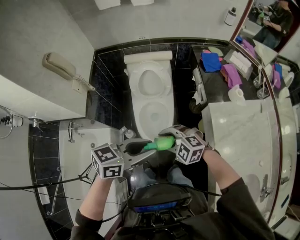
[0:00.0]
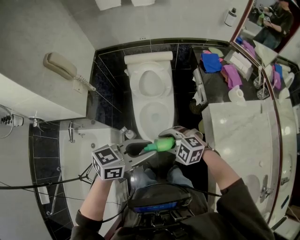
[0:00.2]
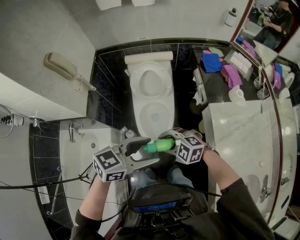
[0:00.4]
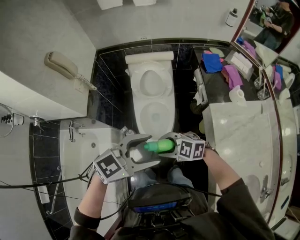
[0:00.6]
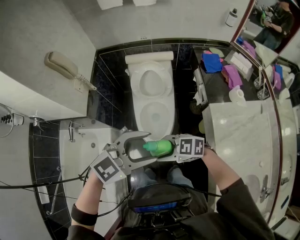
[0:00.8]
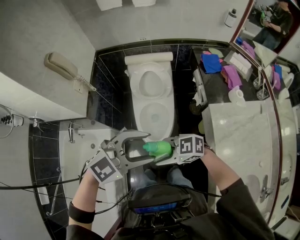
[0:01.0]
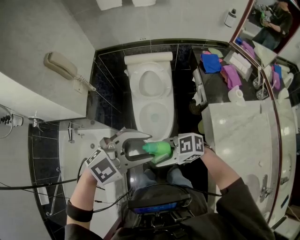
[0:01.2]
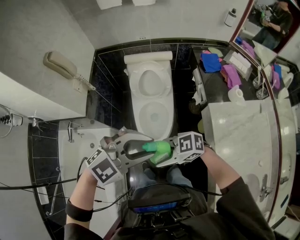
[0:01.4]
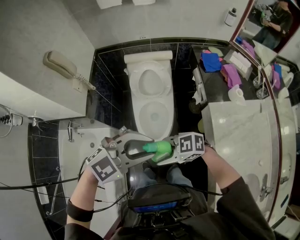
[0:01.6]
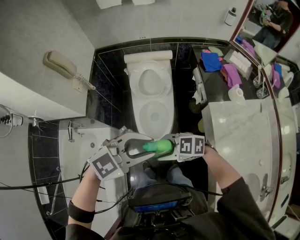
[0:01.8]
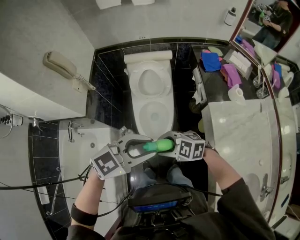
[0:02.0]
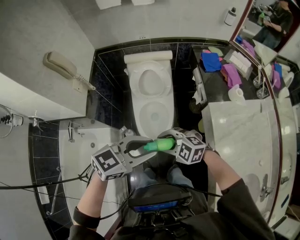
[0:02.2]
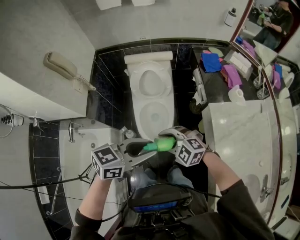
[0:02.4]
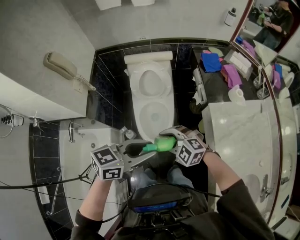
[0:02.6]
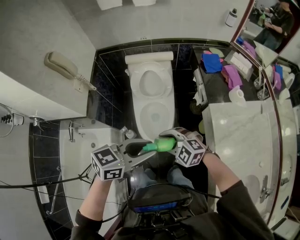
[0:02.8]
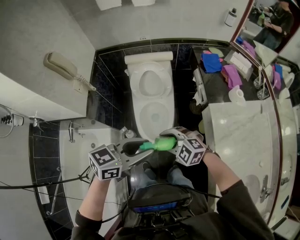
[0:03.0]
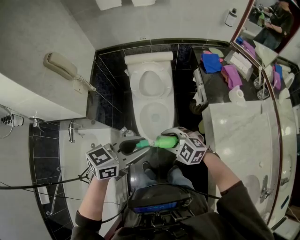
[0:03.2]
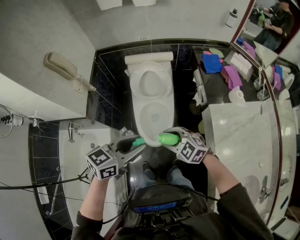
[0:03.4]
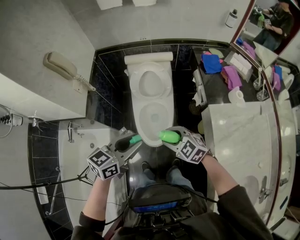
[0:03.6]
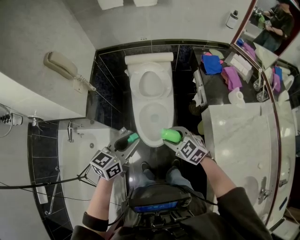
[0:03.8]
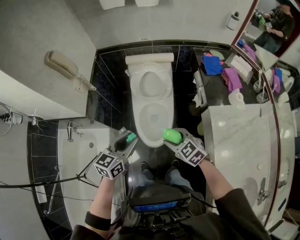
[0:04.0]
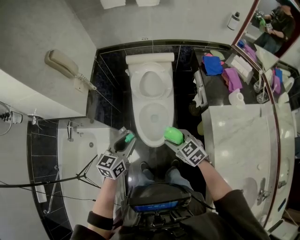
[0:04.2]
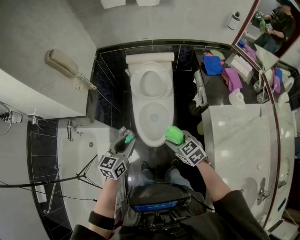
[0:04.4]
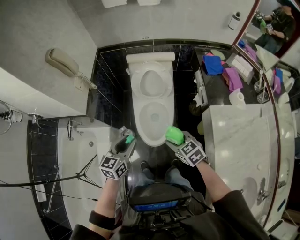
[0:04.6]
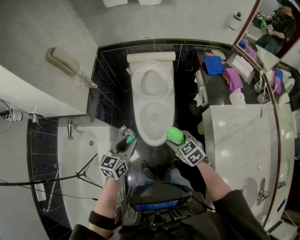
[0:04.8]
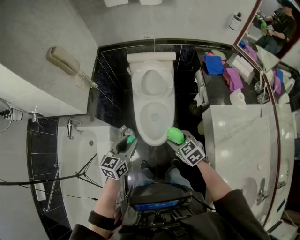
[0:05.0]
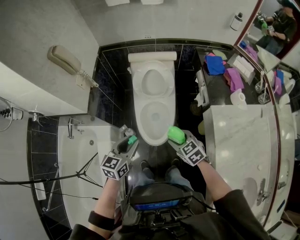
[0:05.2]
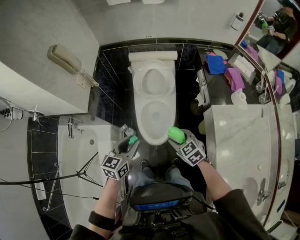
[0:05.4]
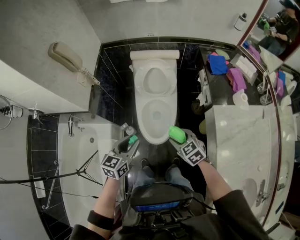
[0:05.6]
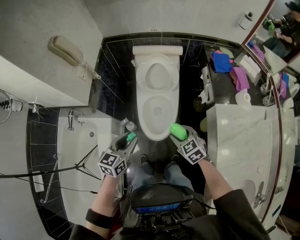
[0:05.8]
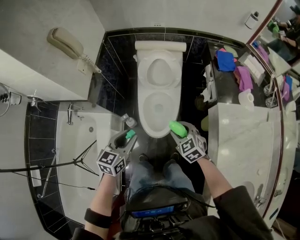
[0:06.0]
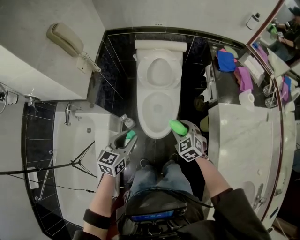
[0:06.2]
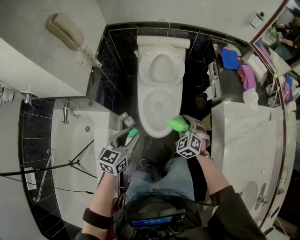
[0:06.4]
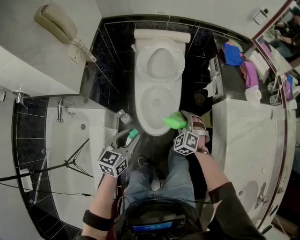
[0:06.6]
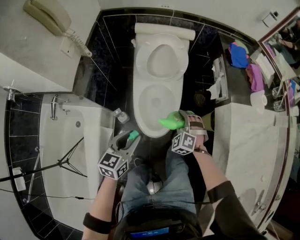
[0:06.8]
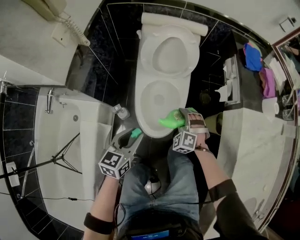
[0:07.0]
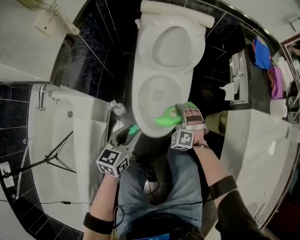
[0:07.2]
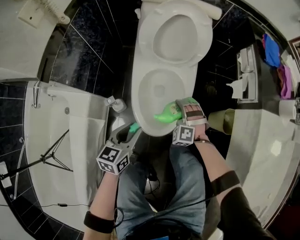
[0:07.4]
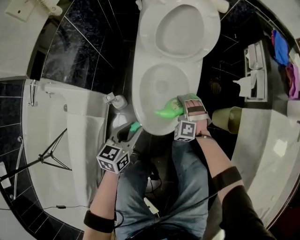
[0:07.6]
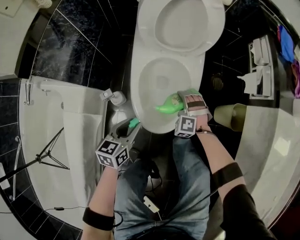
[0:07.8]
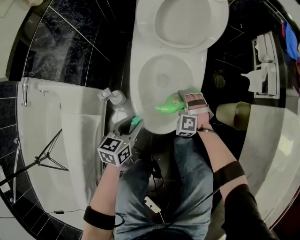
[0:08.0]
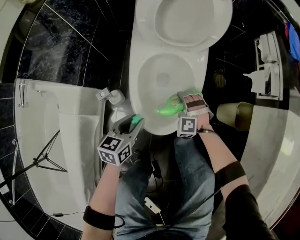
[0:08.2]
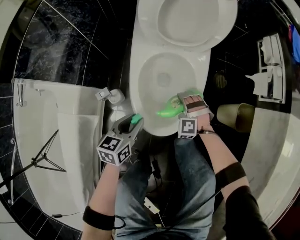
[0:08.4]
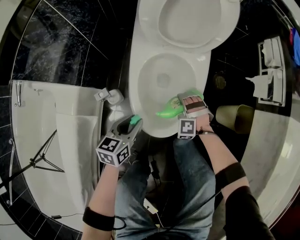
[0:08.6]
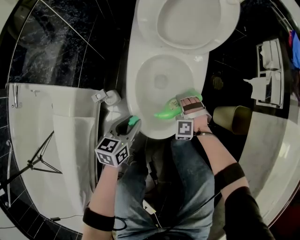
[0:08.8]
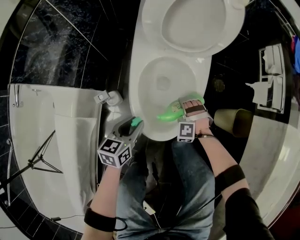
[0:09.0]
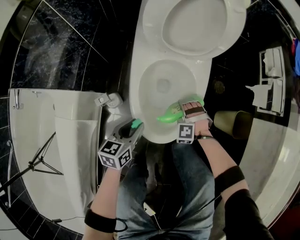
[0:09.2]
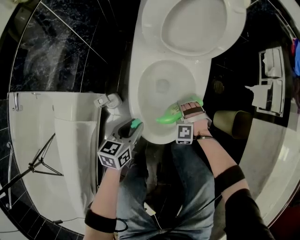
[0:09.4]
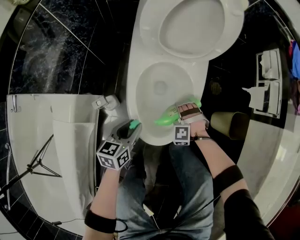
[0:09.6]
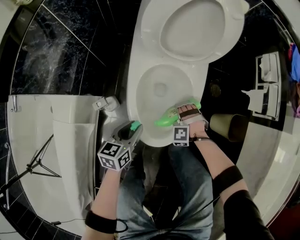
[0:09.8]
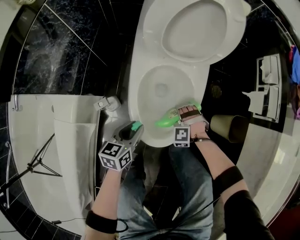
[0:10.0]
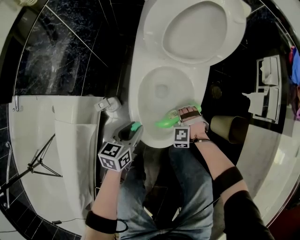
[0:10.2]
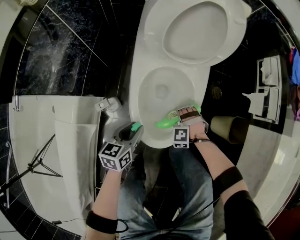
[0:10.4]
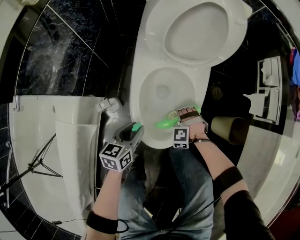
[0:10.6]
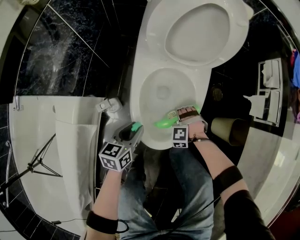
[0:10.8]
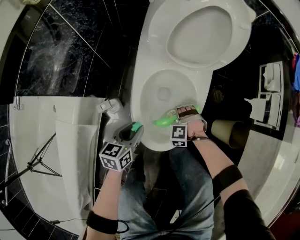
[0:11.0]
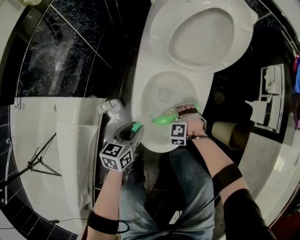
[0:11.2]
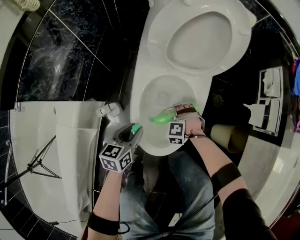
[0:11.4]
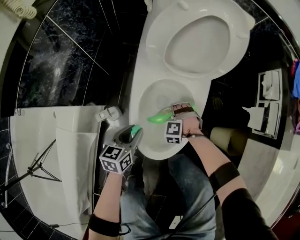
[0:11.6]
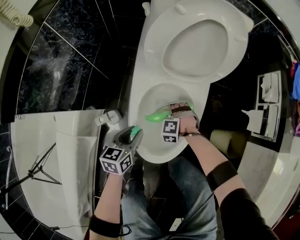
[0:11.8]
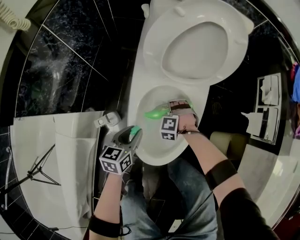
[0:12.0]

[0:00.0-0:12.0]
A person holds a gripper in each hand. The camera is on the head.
0:00.0 to 0:01.6: The right gripper shifts by some 10 cm, and swivels some 40 degrees. Meanwhile the left gripper travels upward by approximately 5 cm, rolls clockwise, seen from behind, by some 50 degrees, and opens, then closes again.
0:01.6 to 0:03.0: The right gripper shifts by approximately 10 cm, and swivels approximately 40 degrees; the left gripper moves roughly 5 cm, and twists about 50 degrees counterclockwise, seen from behind.
0:03.0 to 0:04.4: The right gripper changes place by about 5 cm, and swivels some 40 degrees. The left gripper is displaced downward by some 10 cm, and changes its angle by roughly 40 degrees.
0:04.4 to 0:06.0: There are only small adjustments of the grippers.
0:06.0 to 0:07.6: Both grippers move downward, approximately 40 cm. The right gripper rotates around the line of its fingers by approximately 50 degrees, counterclockwise from behind.
0:07.6 to 0:09.0: The grippers both shift downward by about 10 cm.
0:09.0 to 0:10.4: There are only small adjustments of the grippers.
0:10.4 to 0:12.0: The left gripper is displaced forward by approximately 5 cm. The right gripper shifts about 15 cm to the left and forward.

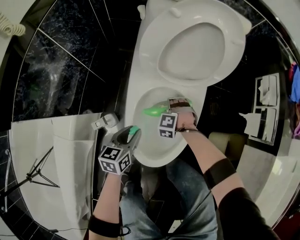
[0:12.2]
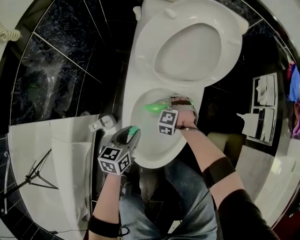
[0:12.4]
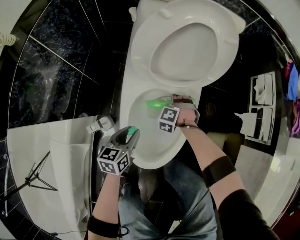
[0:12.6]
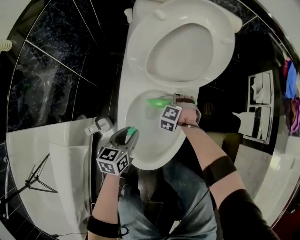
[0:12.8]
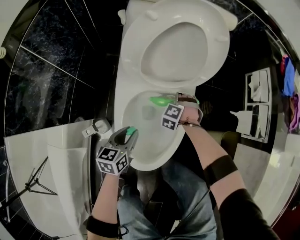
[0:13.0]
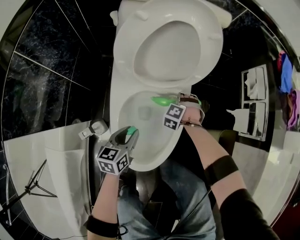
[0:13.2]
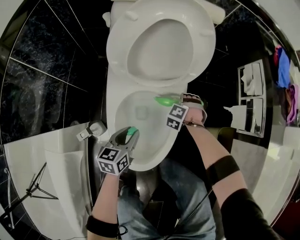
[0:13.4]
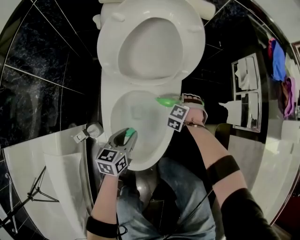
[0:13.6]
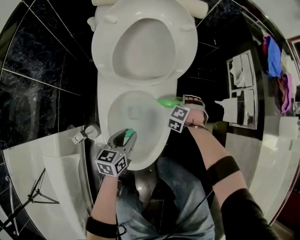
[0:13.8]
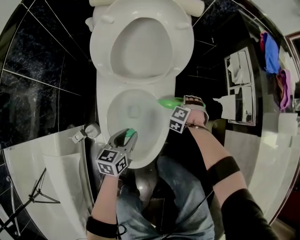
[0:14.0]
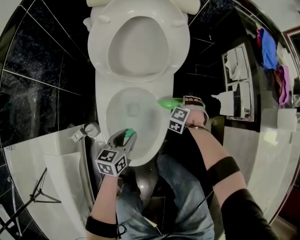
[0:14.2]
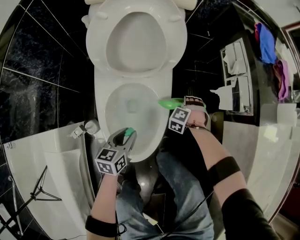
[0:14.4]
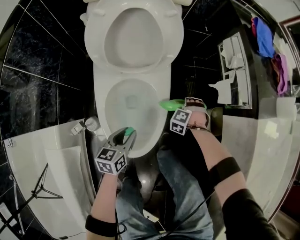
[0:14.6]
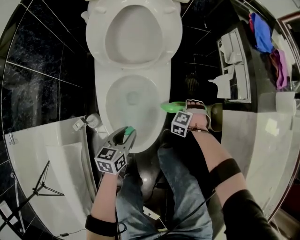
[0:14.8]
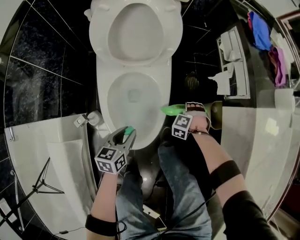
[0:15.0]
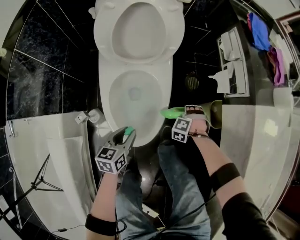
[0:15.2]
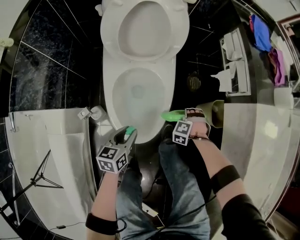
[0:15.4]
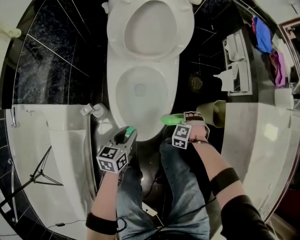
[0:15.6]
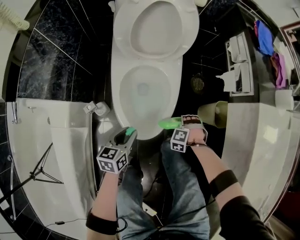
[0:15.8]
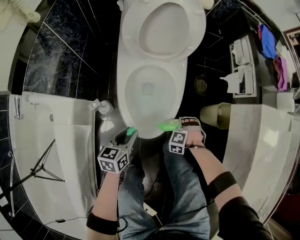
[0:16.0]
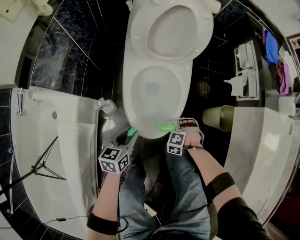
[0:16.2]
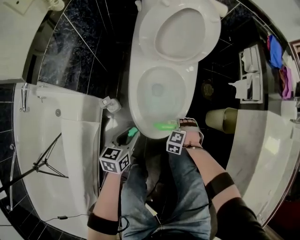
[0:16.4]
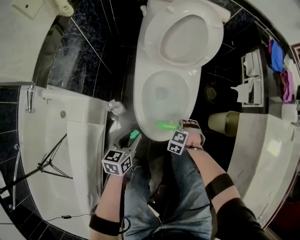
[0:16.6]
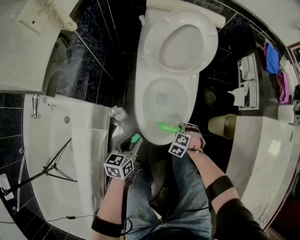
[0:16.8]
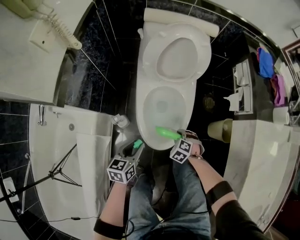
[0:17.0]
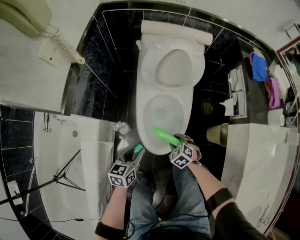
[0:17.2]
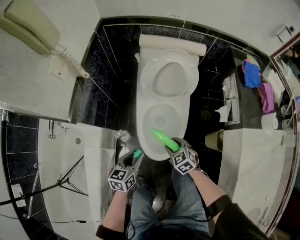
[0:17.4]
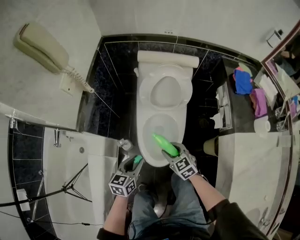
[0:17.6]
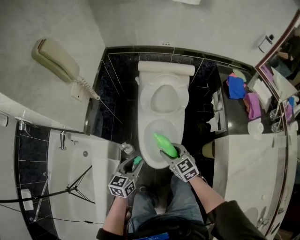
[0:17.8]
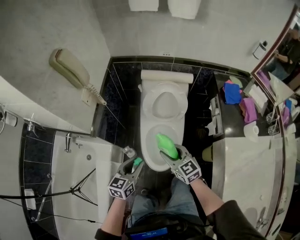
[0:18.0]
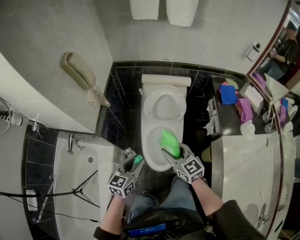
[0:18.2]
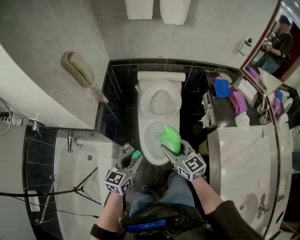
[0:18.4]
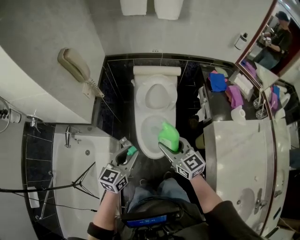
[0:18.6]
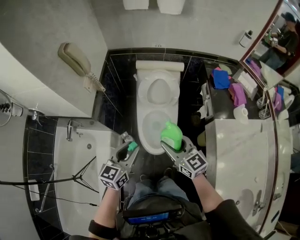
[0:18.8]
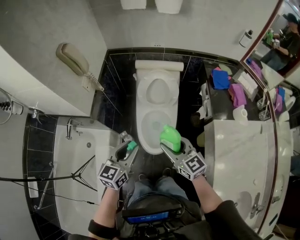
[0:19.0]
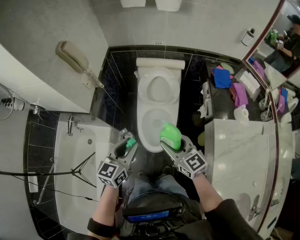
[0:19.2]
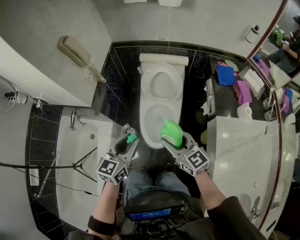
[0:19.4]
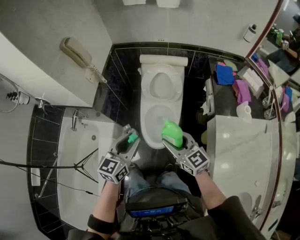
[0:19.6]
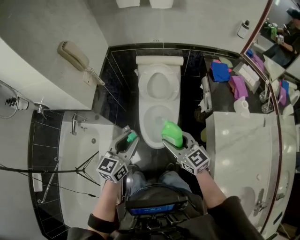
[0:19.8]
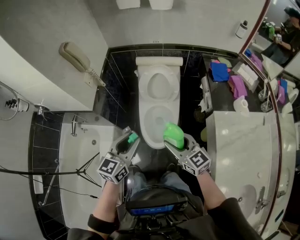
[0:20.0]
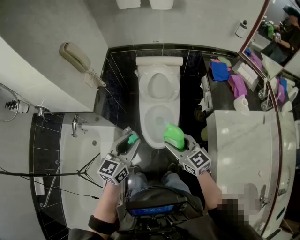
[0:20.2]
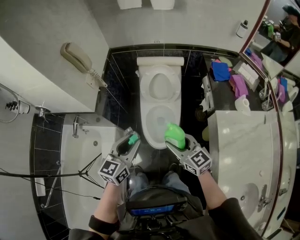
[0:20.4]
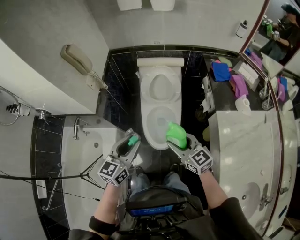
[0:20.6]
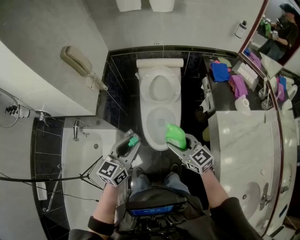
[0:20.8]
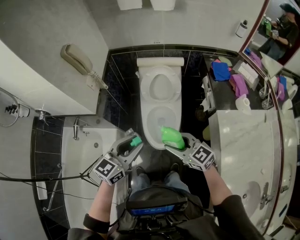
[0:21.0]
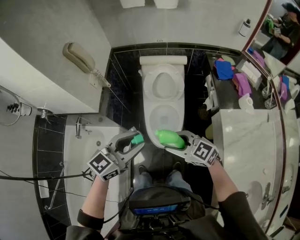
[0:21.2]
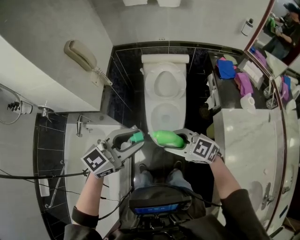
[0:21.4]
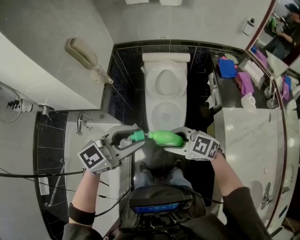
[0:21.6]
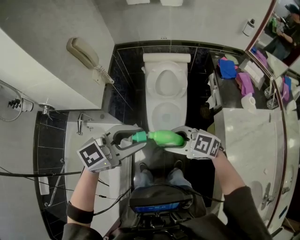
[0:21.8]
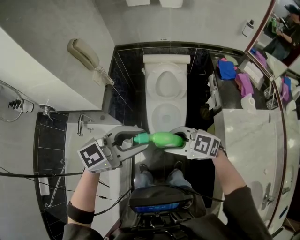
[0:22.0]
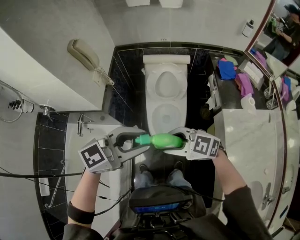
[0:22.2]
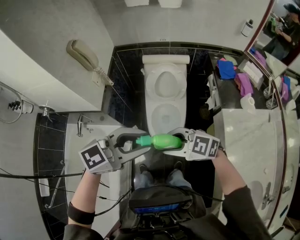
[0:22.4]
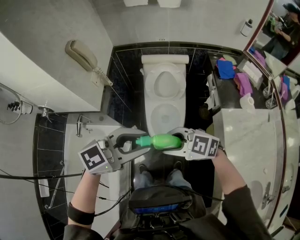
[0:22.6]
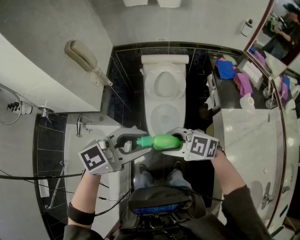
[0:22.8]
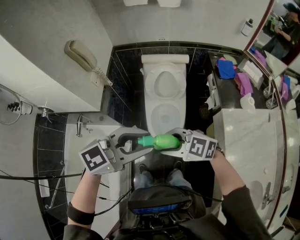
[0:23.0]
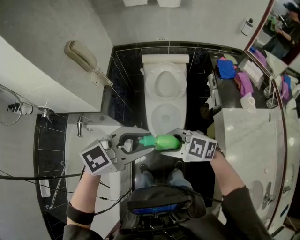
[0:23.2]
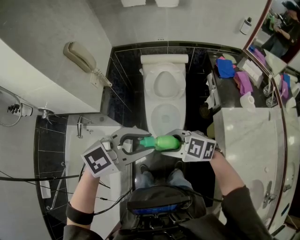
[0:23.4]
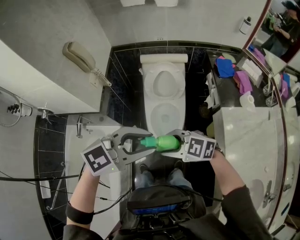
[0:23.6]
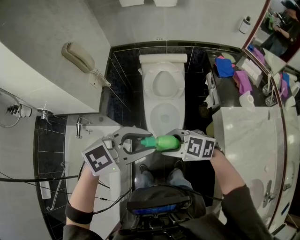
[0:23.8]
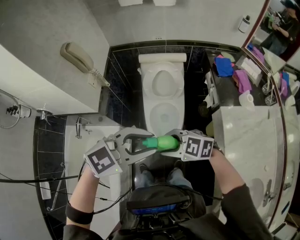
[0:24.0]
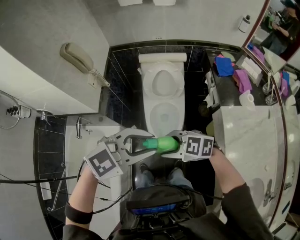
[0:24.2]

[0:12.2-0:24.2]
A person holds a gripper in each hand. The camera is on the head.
0:12.2 to 0:13.8: The right gripper goes some 25 cm to the right and forward, and swivels about 30 degrees. Meanwhile the left gripper goes some 10 cm forward and to the right.
0:13.8 to 0:15.2: The right gripper shifts some 20 cm to the right and backward. Meanwhile the left gripper heads to the right and backward, covering about 10 cm.
0:15.2 to 0:16.6: The right gripper ends up about 20 cm from where it was. Meanwhile the left gripper shifts by about 15 cm.
0:16.6 to 0:18.2: Both grippers move upward, some 50 cm. The left gripper changes its angle by approximately 20 degrees. Meanwhile the right gripper points its fingers approximately 60 degrees further upward.
0:18.2 to 0:19.8: The left gripper heads upward, backward and to the right, covering approximately 15 cm, while the right gripper shifts about 15 cm backward, upward and to the right.
0:19.8 to 0:21.2: The right gripper moves to the left, approximately 5 cm, and changes its angle by approximately 20 degrees. Meanwhile the left gripper is displaced upward by about 5 cm, and turns by approximately 30 degrees.
0:21.2 to 0:22.6: The left gripper goes about 10 cm upward. The right gripper changes place by about 5 cm.
0:22.6 to 0:24.2: The left gripper rotates about 20 degrees.
